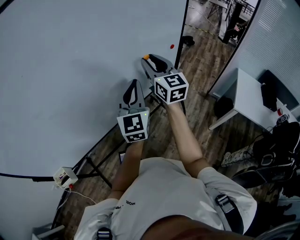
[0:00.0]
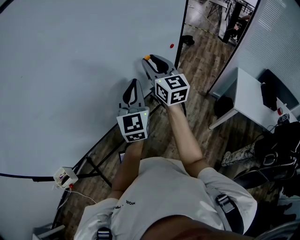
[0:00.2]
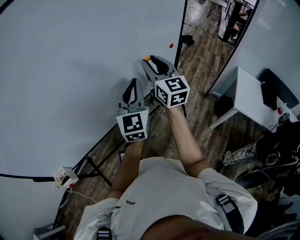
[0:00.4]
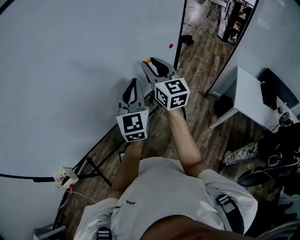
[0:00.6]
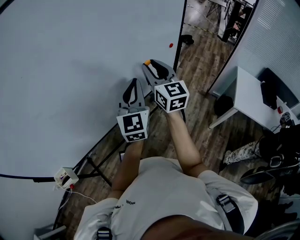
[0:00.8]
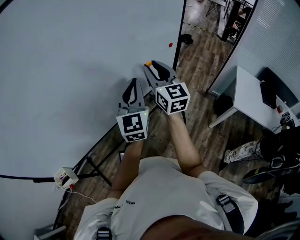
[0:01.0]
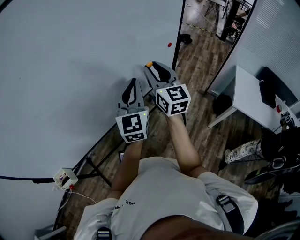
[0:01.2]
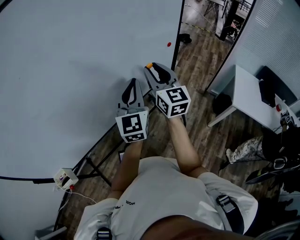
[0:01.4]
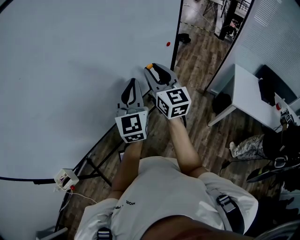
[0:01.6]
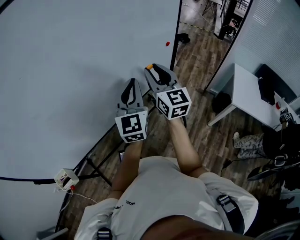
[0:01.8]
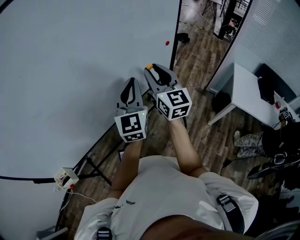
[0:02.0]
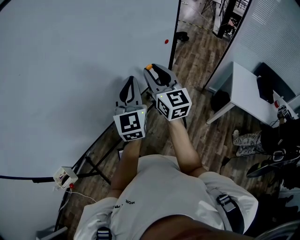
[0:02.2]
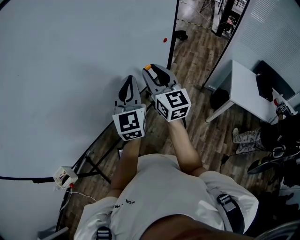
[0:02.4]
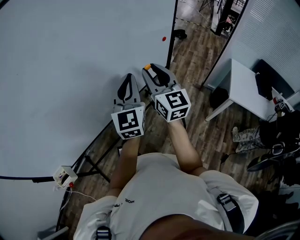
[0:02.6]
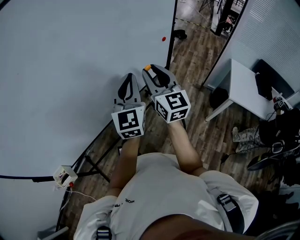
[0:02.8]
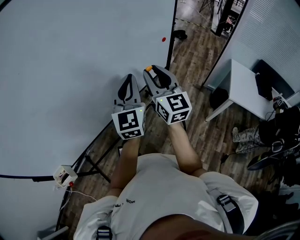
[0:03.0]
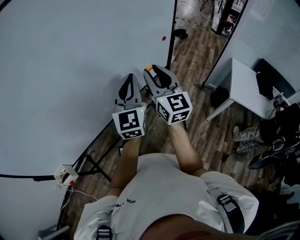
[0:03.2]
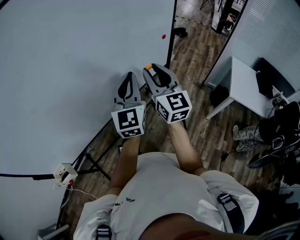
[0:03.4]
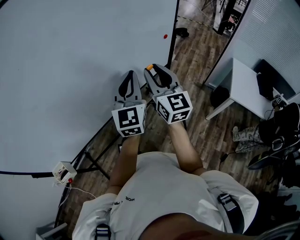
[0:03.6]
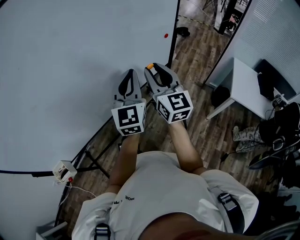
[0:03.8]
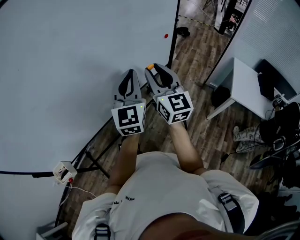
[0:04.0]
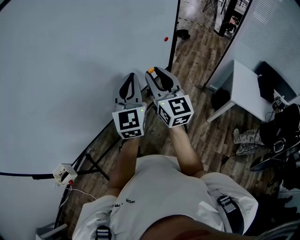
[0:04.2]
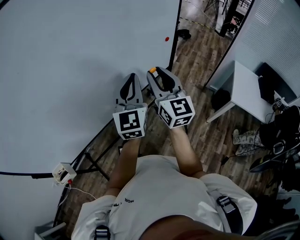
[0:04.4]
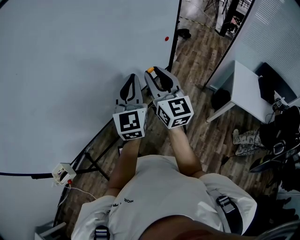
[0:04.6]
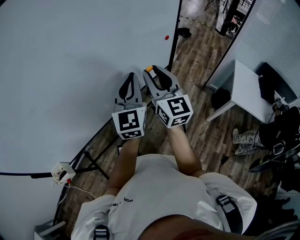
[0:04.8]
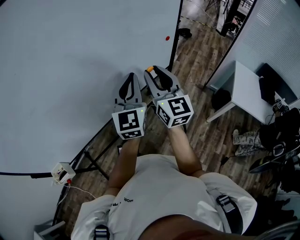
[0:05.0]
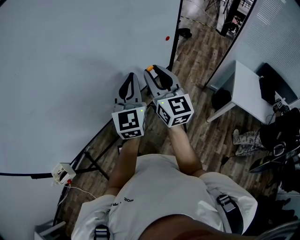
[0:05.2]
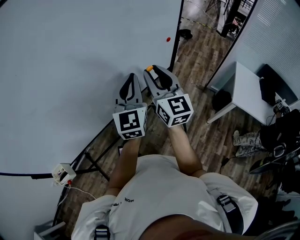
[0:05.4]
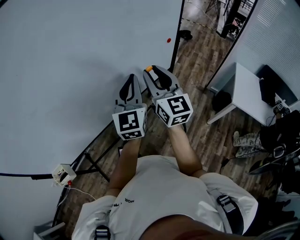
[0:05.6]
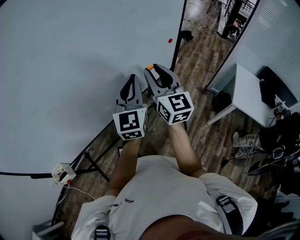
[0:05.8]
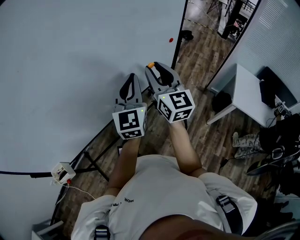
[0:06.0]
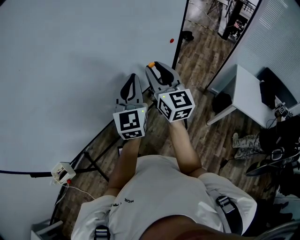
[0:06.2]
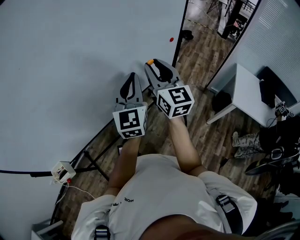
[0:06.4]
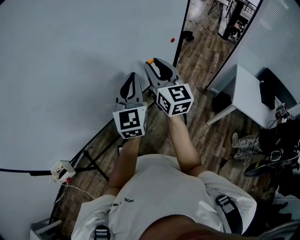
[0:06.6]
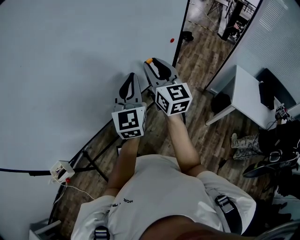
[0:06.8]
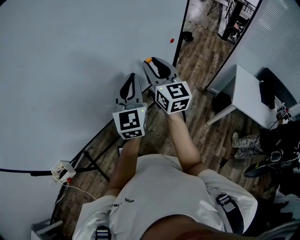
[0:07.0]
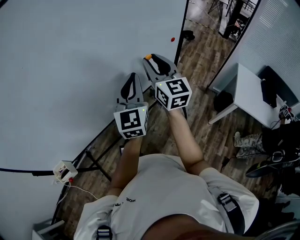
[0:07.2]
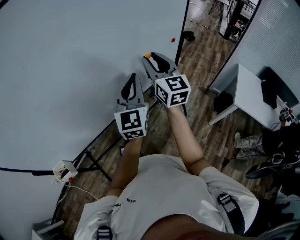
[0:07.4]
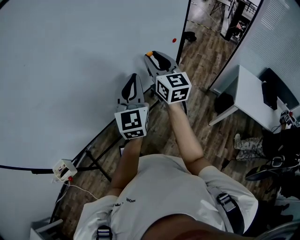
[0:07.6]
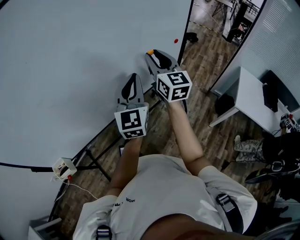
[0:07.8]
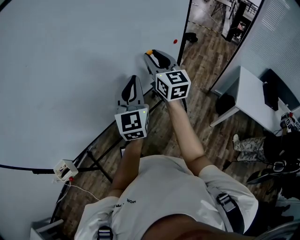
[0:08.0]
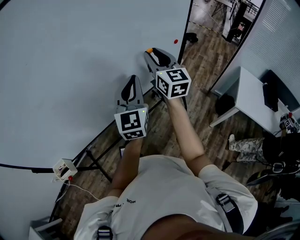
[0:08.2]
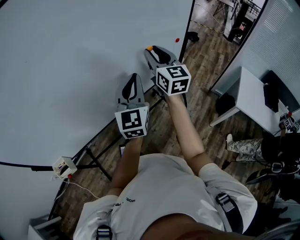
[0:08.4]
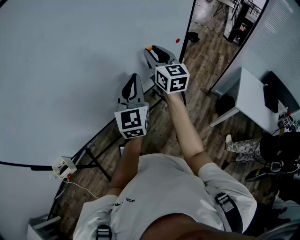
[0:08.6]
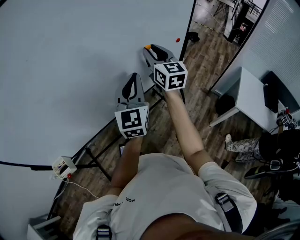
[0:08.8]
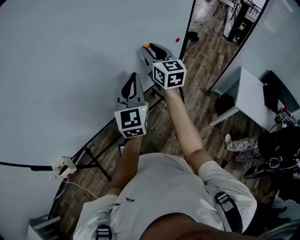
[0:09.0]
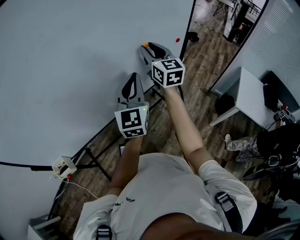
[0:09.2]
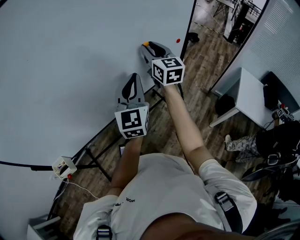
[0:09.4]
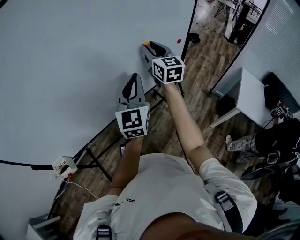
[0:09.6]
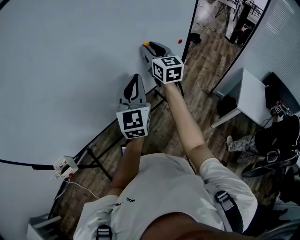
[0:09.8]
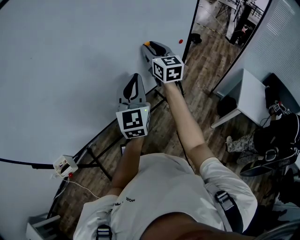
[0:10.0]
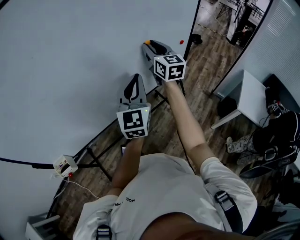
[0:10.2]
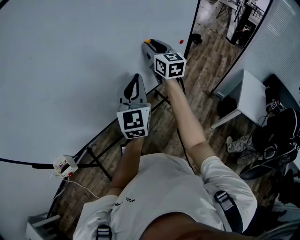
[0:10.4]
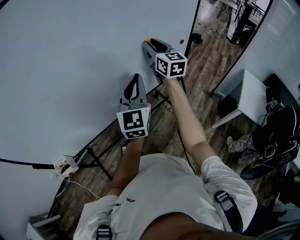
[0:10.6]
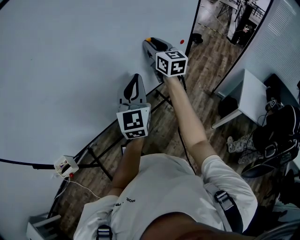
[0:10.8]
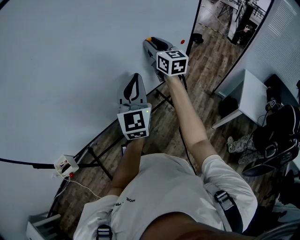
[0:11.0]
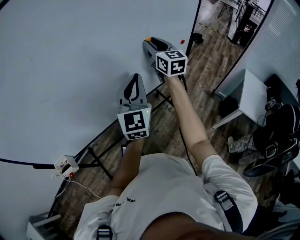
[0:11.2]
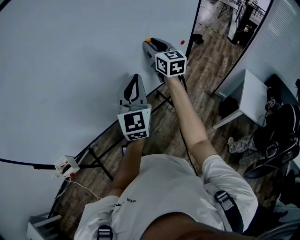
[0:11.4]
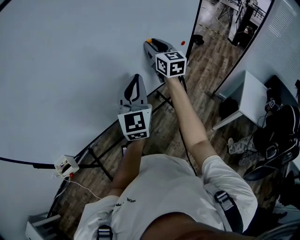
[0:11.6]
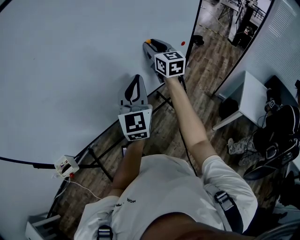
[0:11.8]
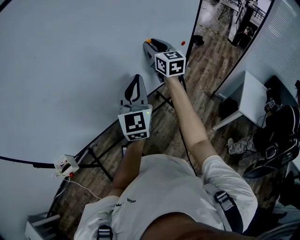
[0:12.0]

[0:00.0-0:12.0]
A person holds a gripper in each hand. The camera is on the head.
0:00.0 to 0:01.6: The right gripper travels backward by some 5 cm.
0:01.6 to 0:03.0: The grippers move only a little.
0:03.0 to 0:04.4: Both grippers stay put.
0:04.4 to 0:06.0: The grippers make only small movements.
0:06.0 to 0:07.6: There are only small adjustments of the grippers.
0:07.6 to 0:09.0: The right gripper shifts some 5 cm forward.
0:09.0 to 0:10.4: The grippers make only small movements.
0:10.4 to 0:12.0: Neither gripper changes place.

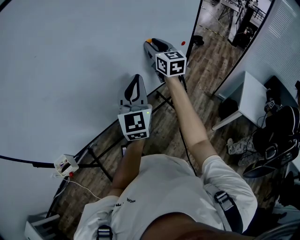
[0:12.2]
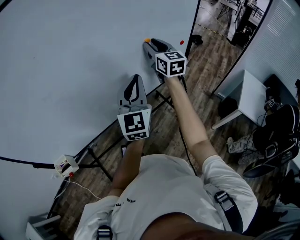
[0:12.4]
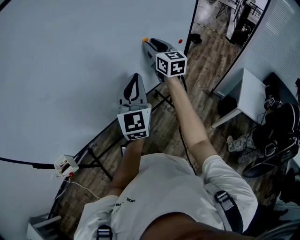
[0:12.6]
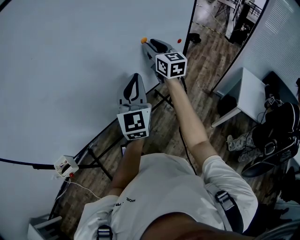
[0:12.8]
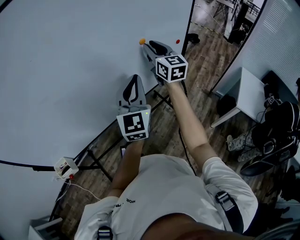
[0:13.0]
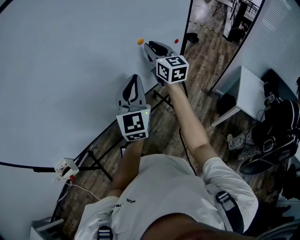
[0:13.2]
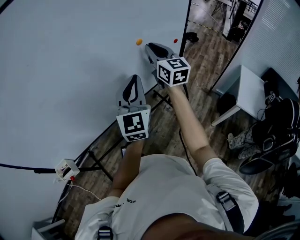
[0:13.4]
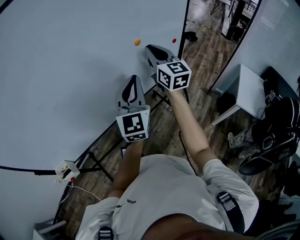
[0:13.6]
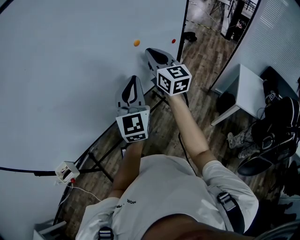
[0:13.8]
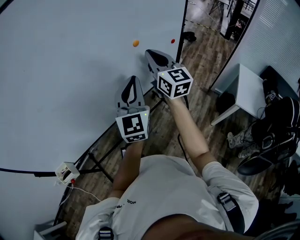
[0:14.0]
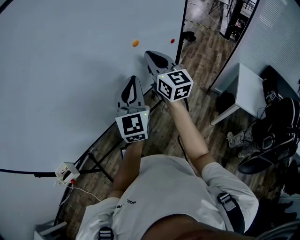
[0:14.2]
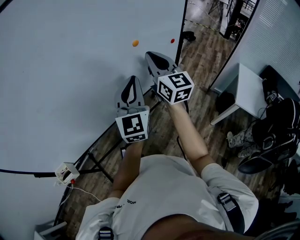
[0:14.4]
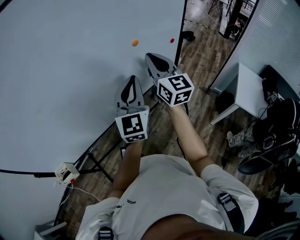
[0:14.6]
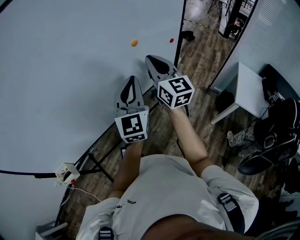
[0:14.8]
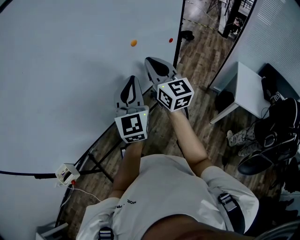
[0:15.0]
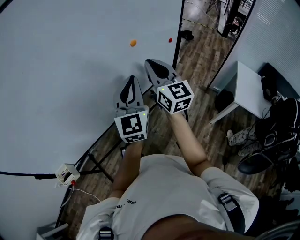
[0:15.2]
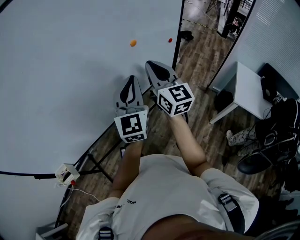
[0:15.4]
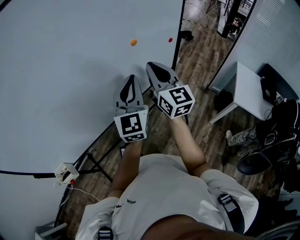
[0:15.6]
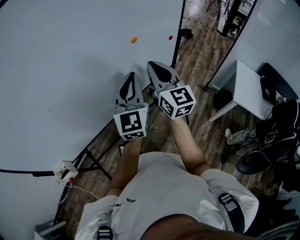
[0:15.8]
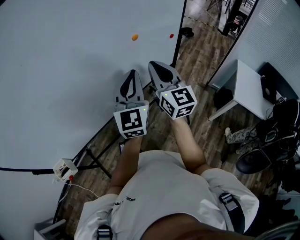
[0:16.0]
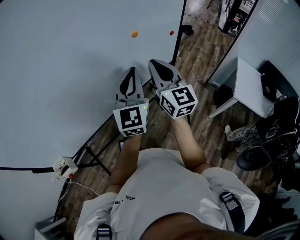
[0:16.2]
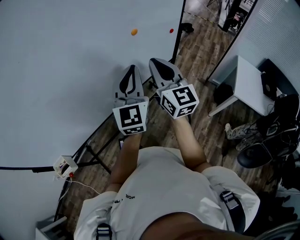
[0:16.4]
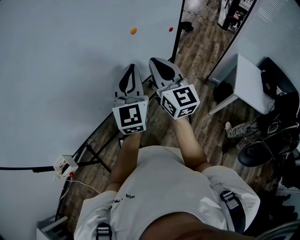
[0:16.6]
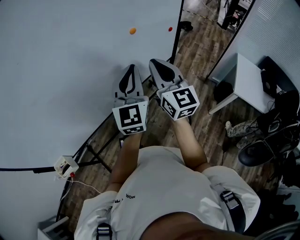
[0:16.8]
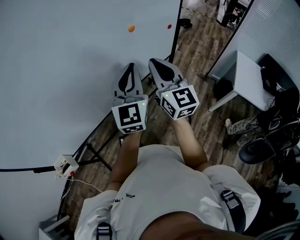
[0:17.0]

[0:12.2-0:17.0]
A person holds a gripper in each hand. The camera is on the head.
0:12.2 to 0:13.8: The right gripper heads backward, covering some 10 cm, and closes its fingers.
0:13.8 to 0:15.4: The right gripper goes some 5 cm backward.
0:15.4 to 0:17.0: The grippers make only small movements.

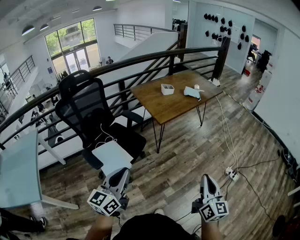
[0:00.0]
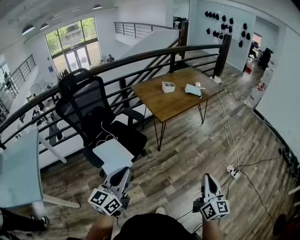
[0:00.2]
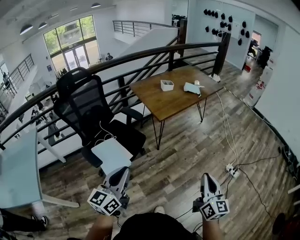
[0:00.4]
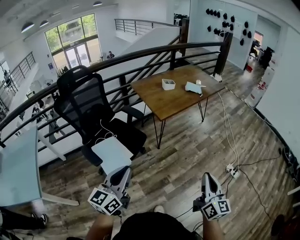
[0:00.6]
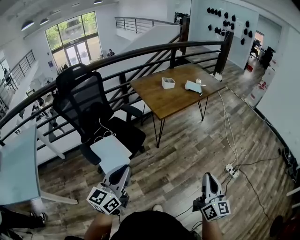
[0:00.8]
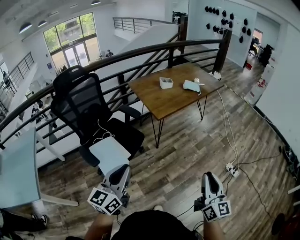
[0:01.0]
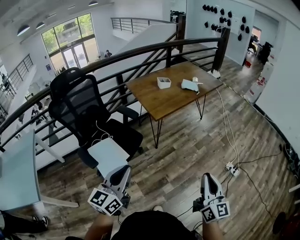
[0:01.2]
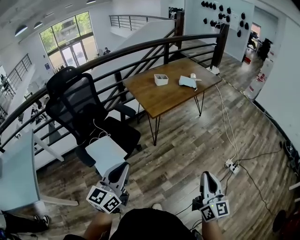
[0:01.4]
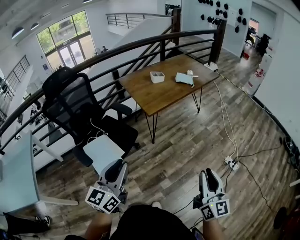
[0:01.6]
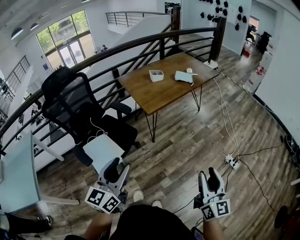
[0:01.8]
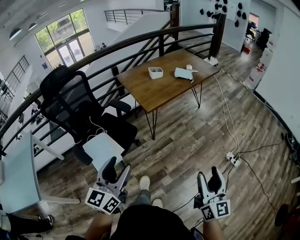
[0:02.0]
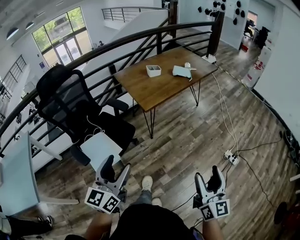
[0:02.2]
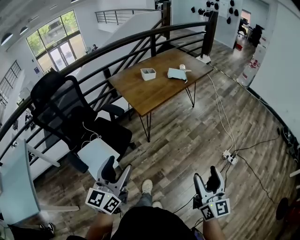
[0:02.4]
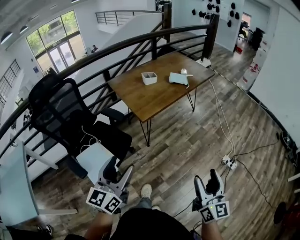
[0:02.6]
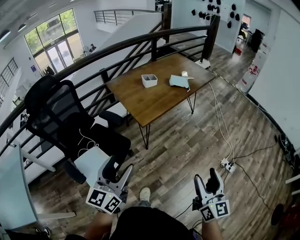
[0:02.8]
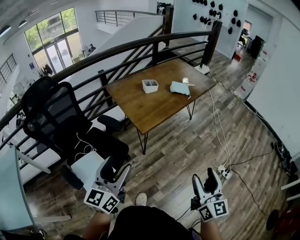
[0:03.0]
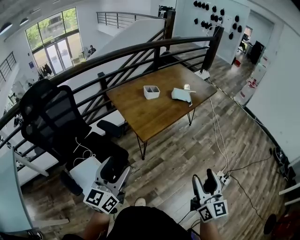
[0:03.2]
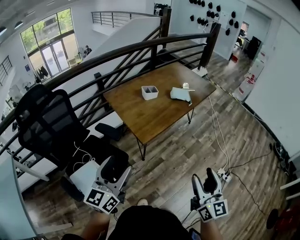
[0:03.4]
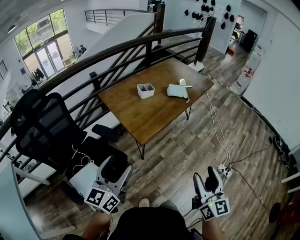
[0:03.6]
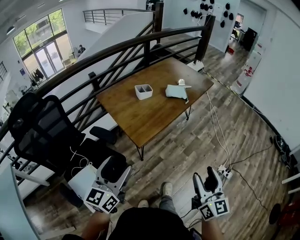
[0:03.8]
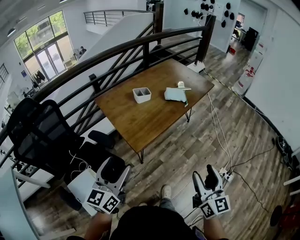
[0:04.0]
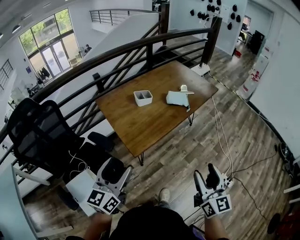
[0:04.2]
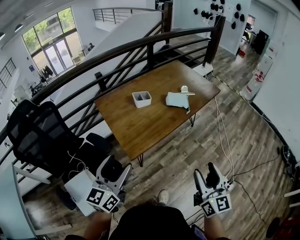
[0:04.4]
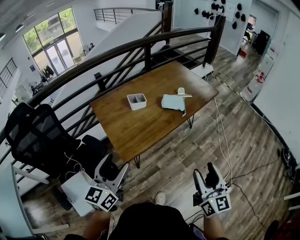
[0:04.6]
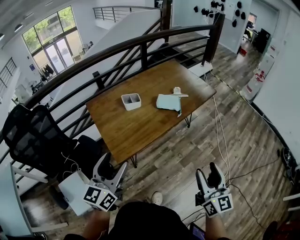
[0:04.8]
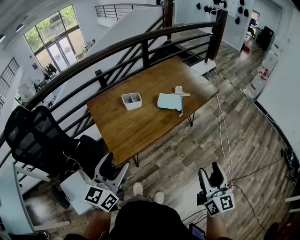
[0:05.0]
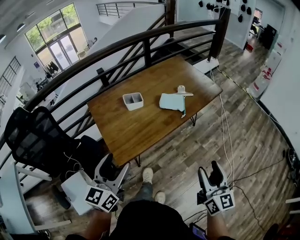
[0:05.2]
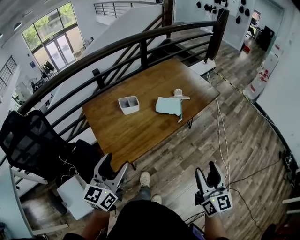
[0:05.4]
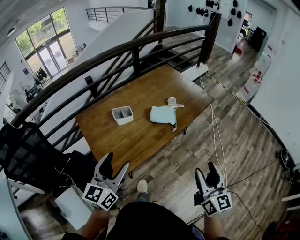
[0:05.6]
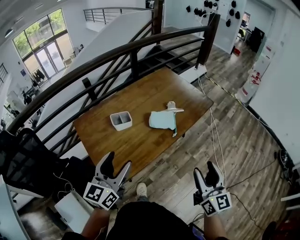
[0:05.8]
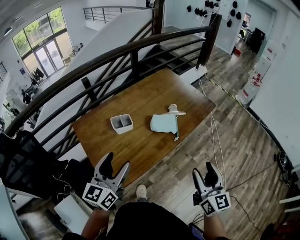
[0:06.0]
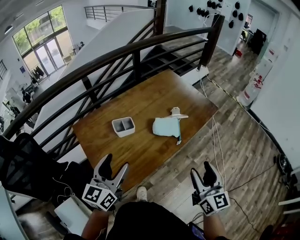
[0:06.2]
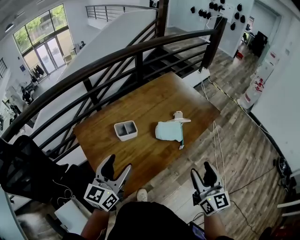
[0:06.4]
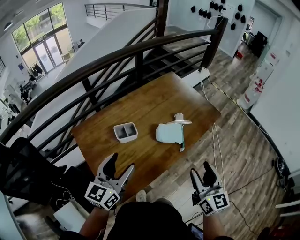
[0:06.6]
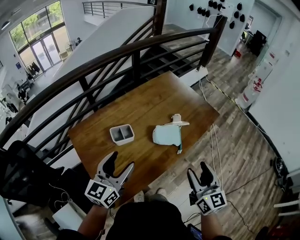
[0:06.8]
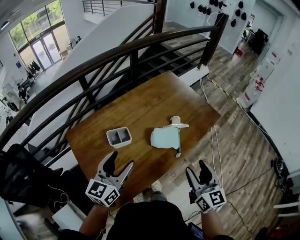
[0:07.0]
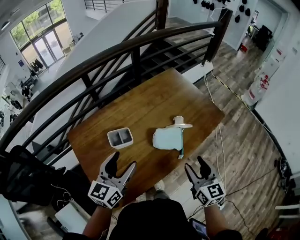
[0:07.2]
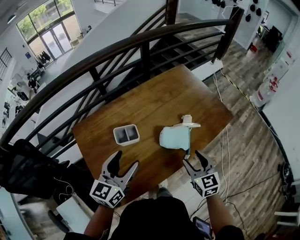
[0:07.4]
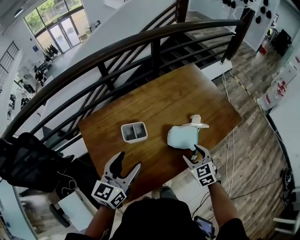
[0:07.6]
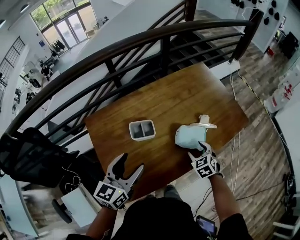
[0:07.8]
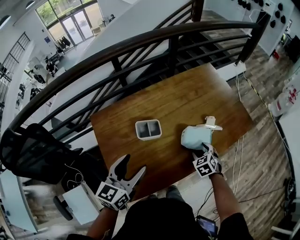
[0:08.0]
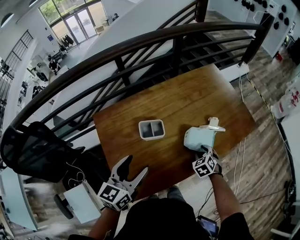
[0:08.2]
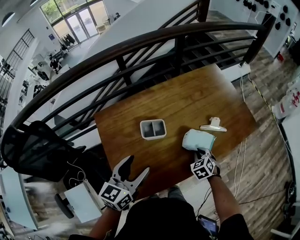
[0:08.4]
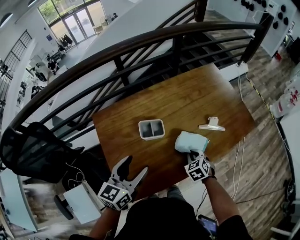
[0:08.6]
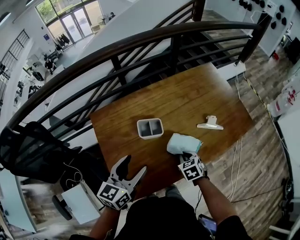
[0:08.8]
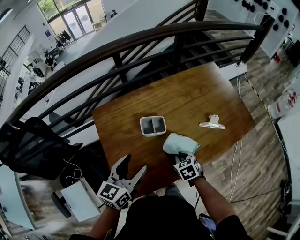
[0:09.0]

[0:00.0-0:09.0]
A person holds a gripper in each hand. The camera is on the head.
0:00.0 to 0:01.6: The right gripper goes some 5 cm to the right; the left gripper moves to the right and forward, about 10 cm.
0:01.6 to 0:03.0: Both grippers move forward, approximately 15 cm. The left gripper opens, while the right gripper opens.
0:03.0 to 0:04.4: Both grippers travel together forward, about 20 cm.
0:04.4 to 0:06.0: Both grippers move forward, about 25 cm.
0:06.0 to 0:07.6: The left gripper is displaced forward and downward by approximately 15 cm. The right gripper shifts some 30 cm forward and downward, and points its fingers roughly 40 degrees further downward.
0:07.6 to 0:09.0: The left gripper heads to the left, covering about 5 cm, while the right gripper goes approximately 15 cm to the left and downward, rotates some 20 degrees, and closes up.
